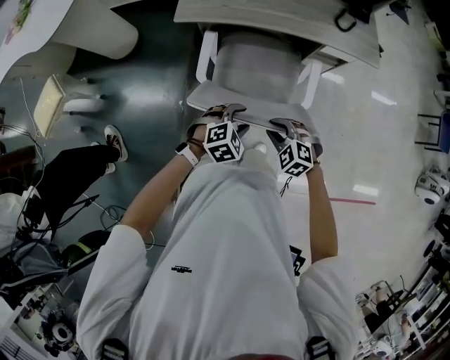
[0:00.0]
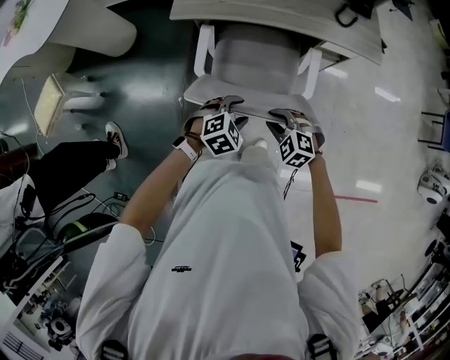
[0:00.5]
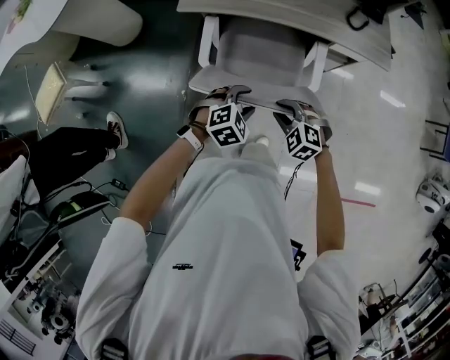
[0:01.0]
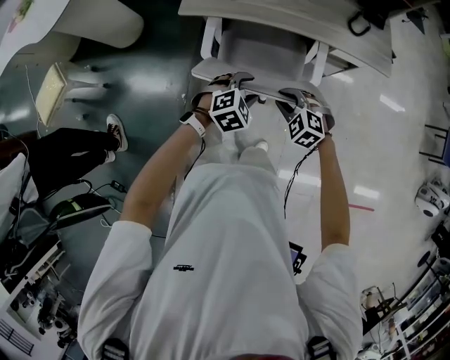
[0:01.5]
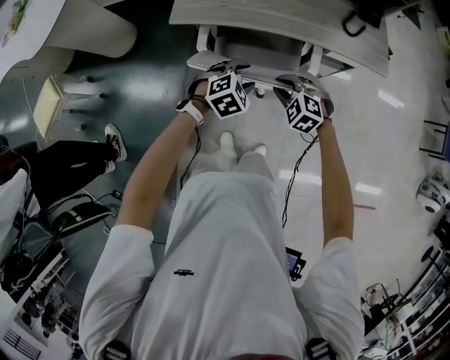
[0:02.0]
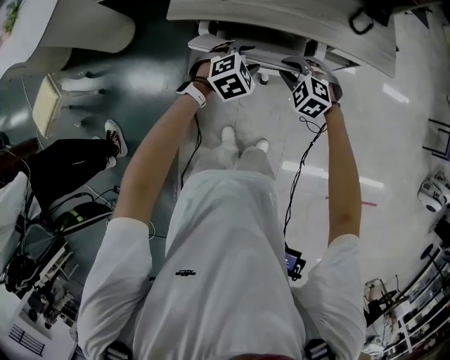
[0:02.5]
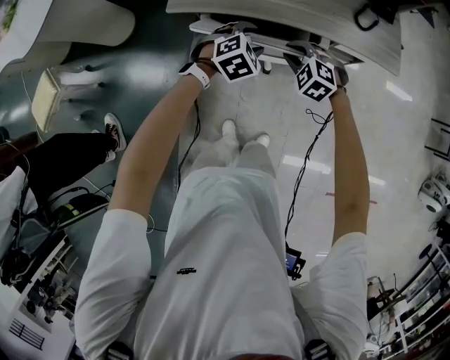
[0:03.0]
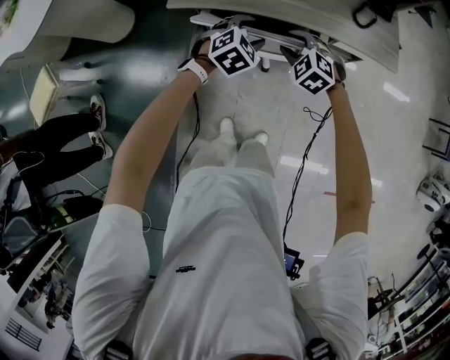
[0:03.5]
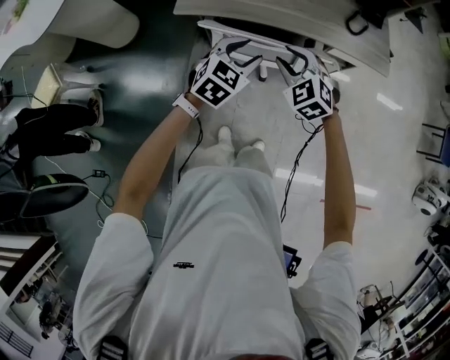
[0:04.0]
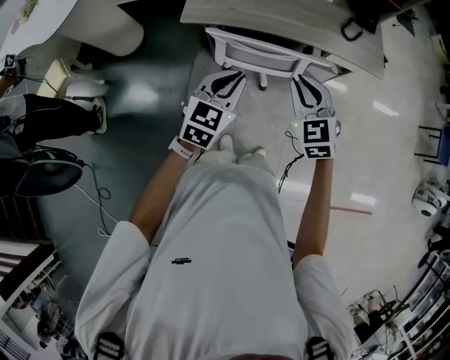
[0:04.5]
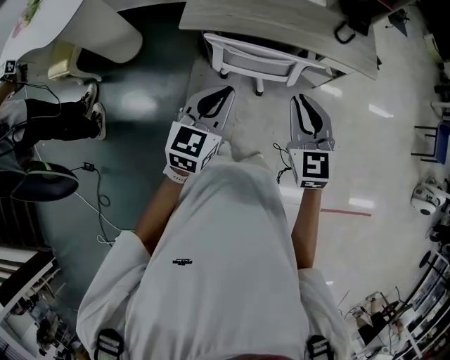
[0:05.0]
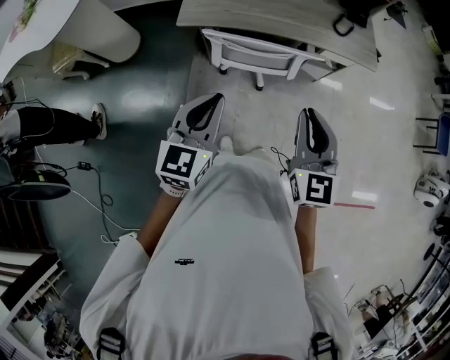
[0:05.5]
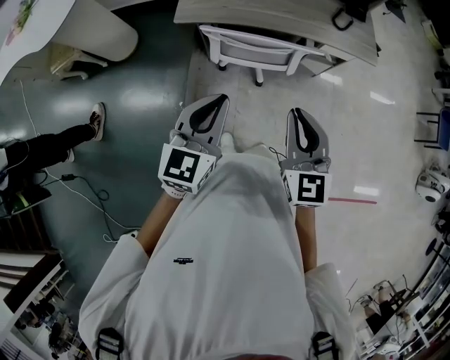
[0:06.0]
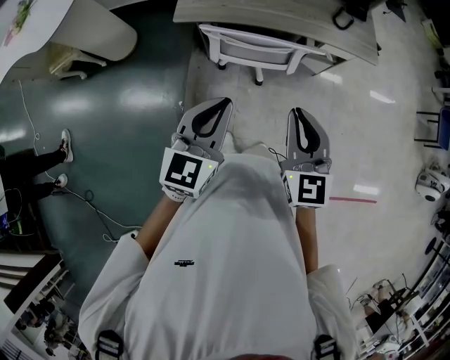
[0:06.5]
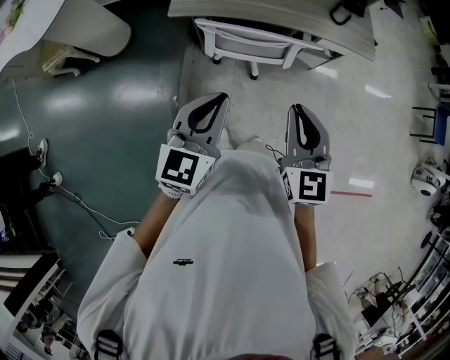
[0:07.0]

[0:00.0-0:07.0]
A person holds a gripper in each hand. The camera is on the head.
0:00.0 to 0:02.0: The two grippers go about 20 cm forward.
0:02.0 to 0:03.5: Both grippers travel together forward, some 10 cm.
0:03.5 to 0:05.0: The left gripper travels backward and upward by some 25 cm, swivels approximately 40 degrees, and closes its fingers. Meanwhile the right gripper moves upward and backward, about 30 cm, angles its fingers upward, by roughly 30 degrees, and closes.
0:05.0 to 0:07.0: The left gripper moves roughly 5 cm. The right gripper moves backward, approximately 5 cm.

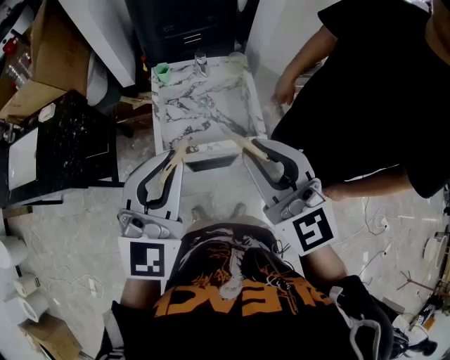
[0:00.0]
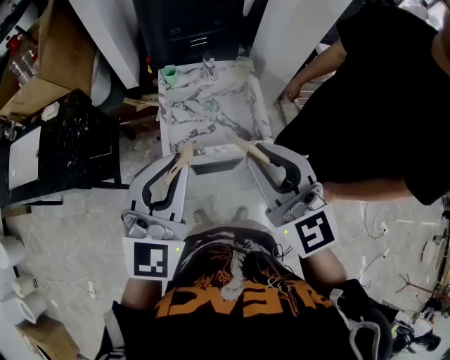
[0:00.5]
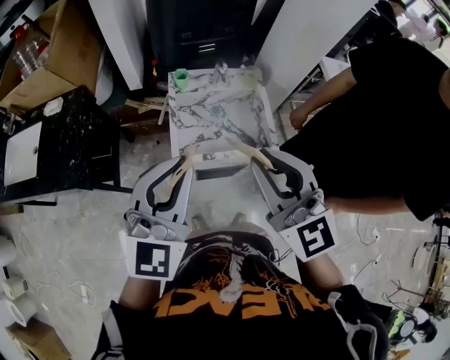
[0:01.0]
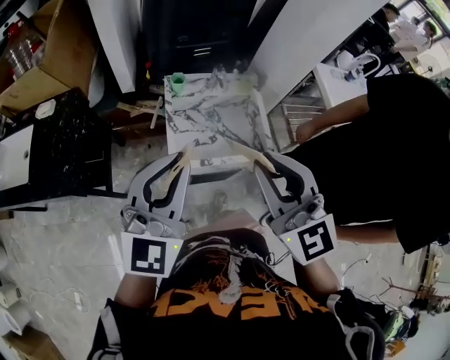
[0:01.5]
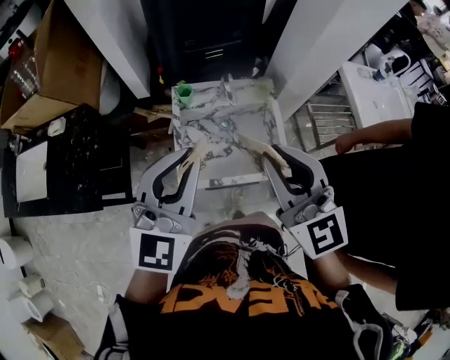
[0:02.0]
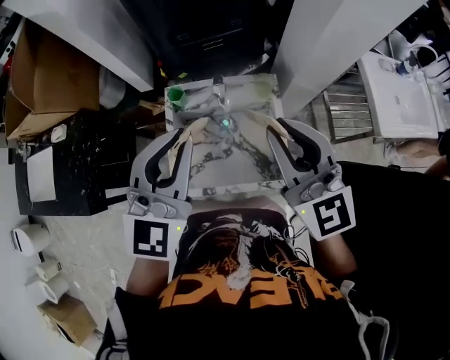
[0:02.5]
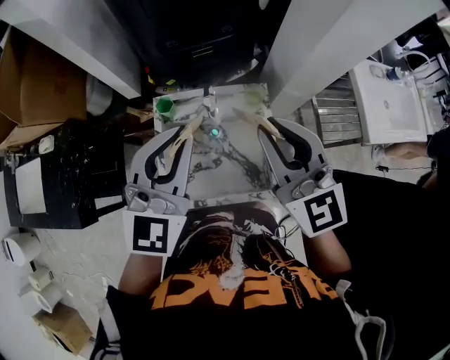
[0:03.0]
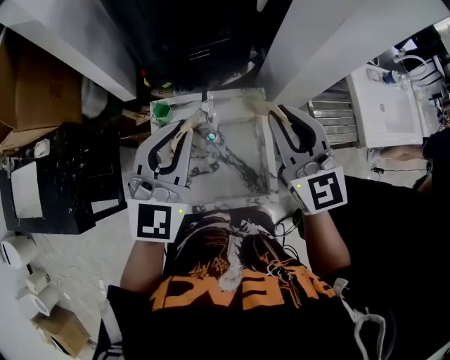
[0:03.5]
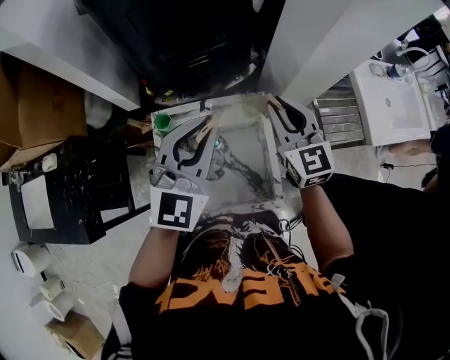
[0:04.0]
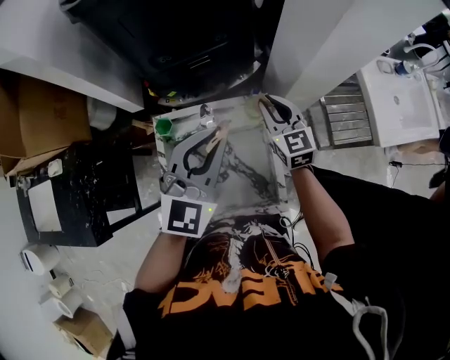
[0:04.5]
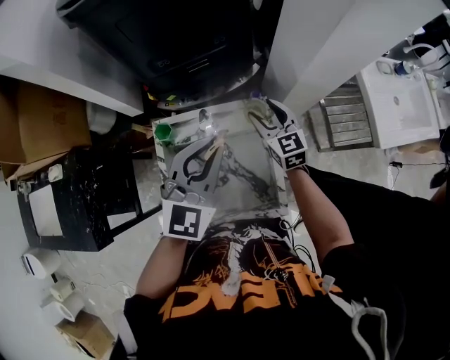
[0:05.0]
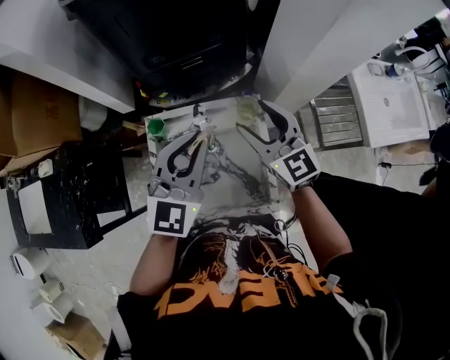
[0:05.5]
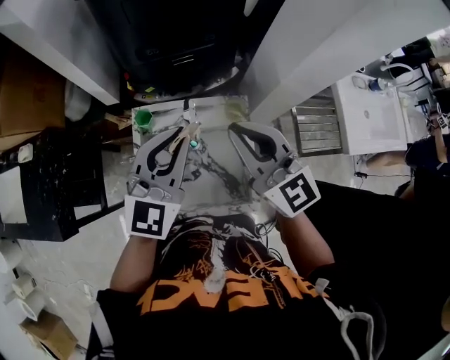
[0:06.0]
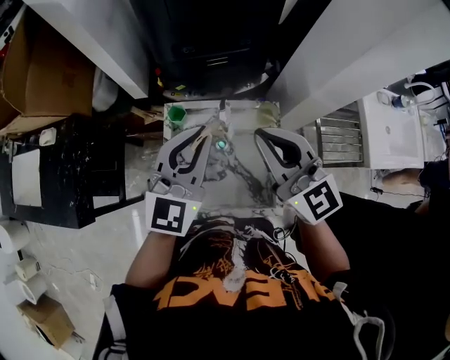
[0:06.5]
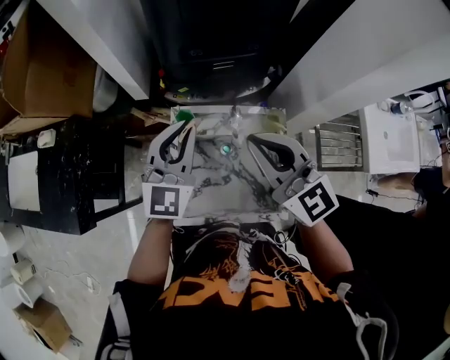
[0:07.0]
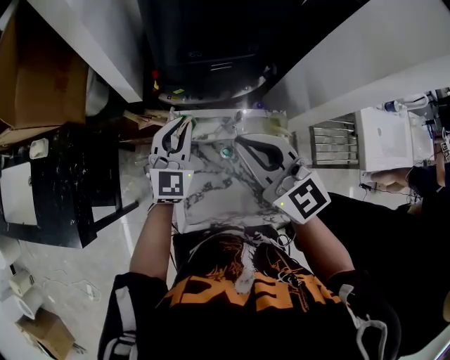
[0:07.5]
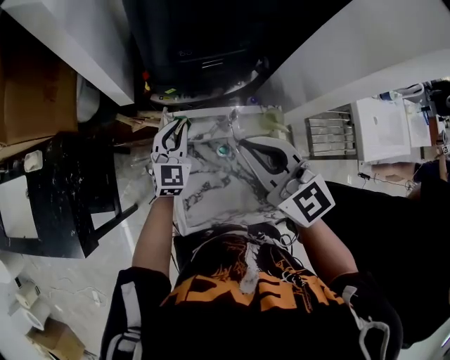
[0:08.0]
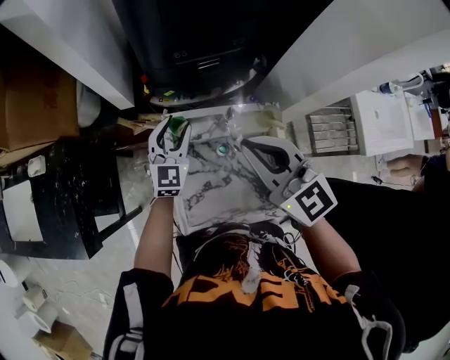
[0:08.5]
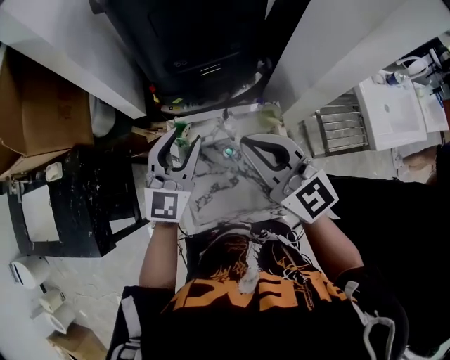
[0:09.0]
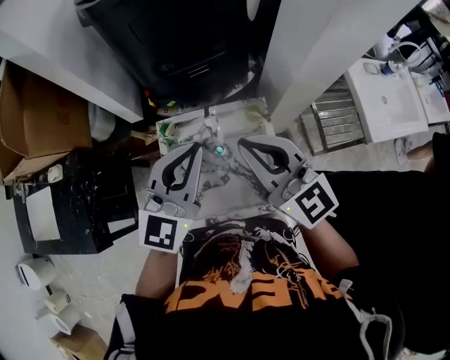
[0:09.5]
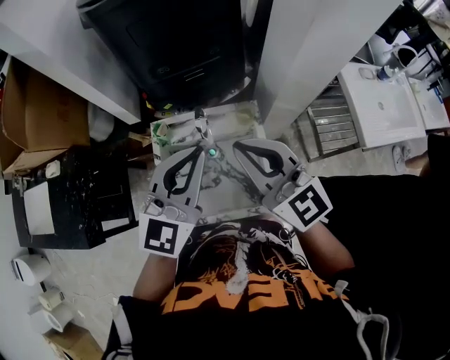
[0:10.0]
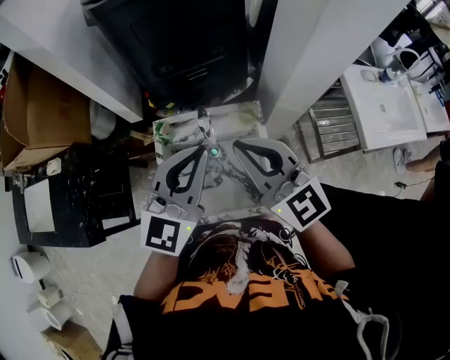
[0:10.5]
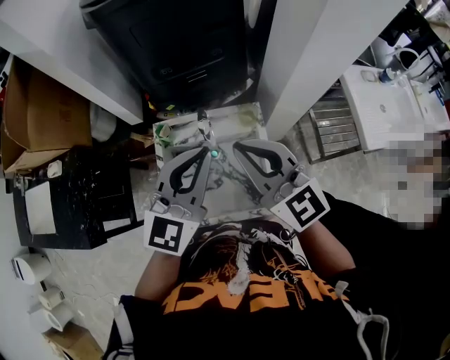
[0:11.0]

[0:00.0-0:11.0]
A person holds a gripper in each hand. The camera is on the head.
0:00.0 to 0:02.0: The grippers both shift forward by roughly 15 cm.
0:02.0 to 0:03.5: The grippers both shift forward and to the right by some 25 cm.
0:03.5 to 0:05.5: The left gripper travels to the right and downward by about 10 cm, while the right gripper goes roughly 15 cm downward and forward, and opens up.
0:05.5 to 0:07.5: The left gripper shifts roughly 20 cm to the left, forward and downward; the right gripper goes about 20 cm to the left and upward, and closes.
0:07.5 to 0:09.0: The right gripper goes approximately 5 cm to the right. The left gripper moves upward and backward, about 10 cm, and opens its fingers.
0:09.0 to 0:11.0: The left gripper travels to the right, backward and upward by roughly 20 cm, and closes up; the right gripper travels to the right and backward by approximately 10 cm.

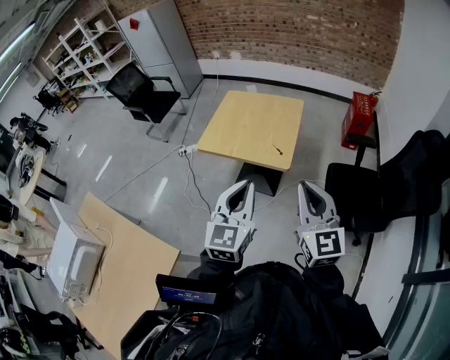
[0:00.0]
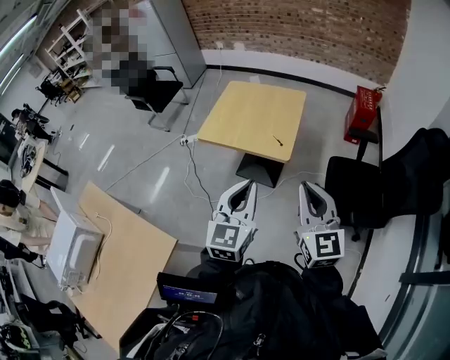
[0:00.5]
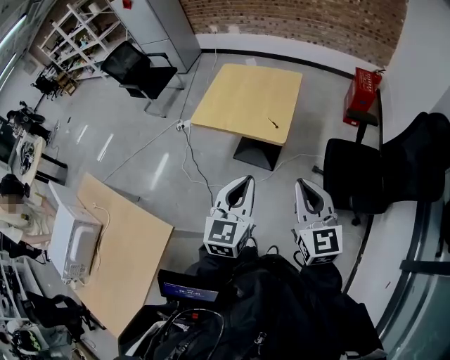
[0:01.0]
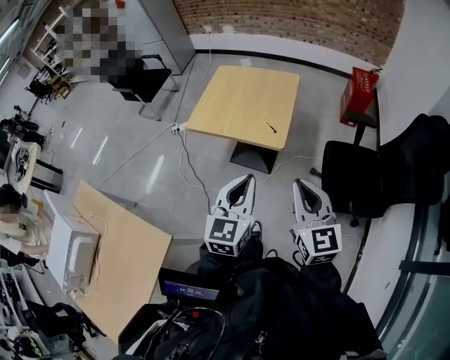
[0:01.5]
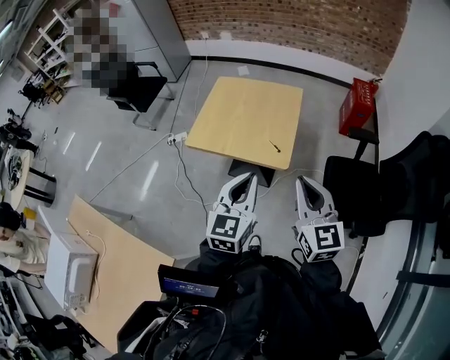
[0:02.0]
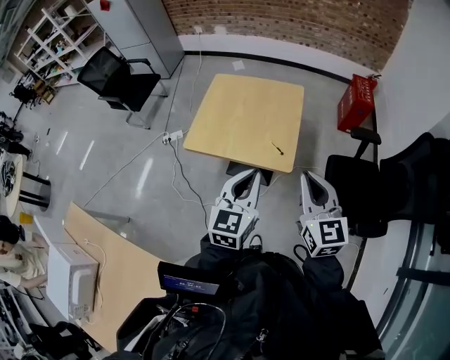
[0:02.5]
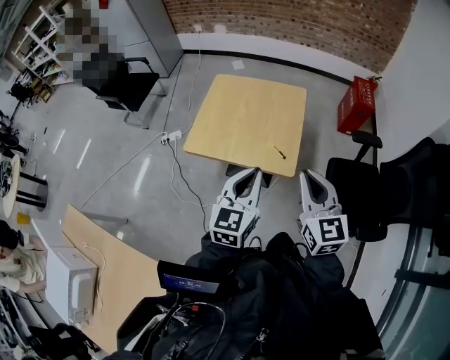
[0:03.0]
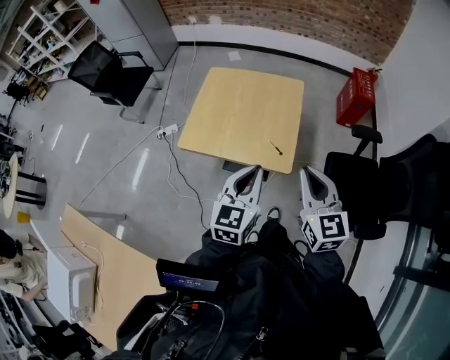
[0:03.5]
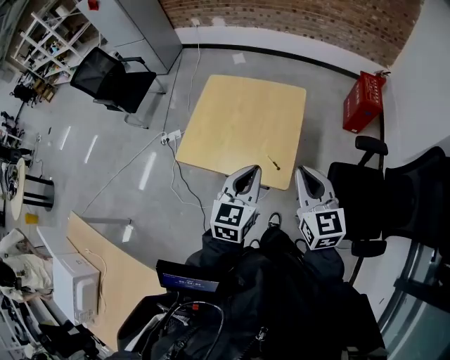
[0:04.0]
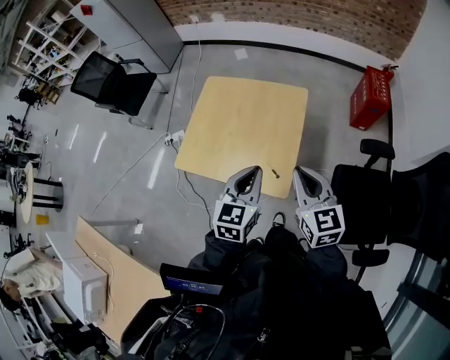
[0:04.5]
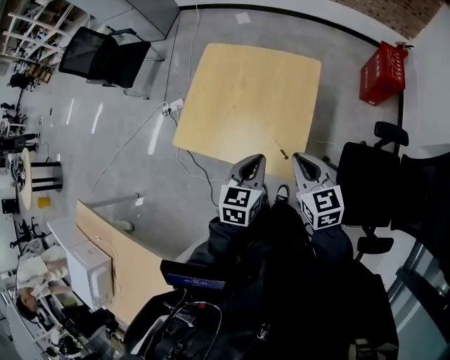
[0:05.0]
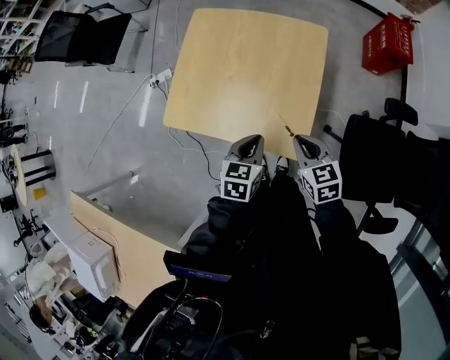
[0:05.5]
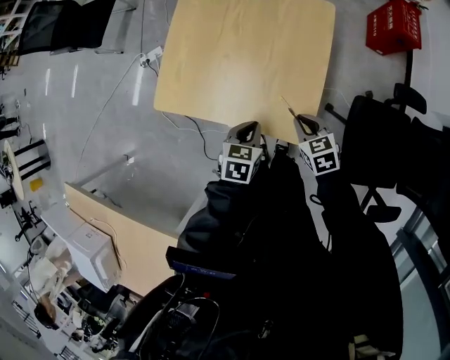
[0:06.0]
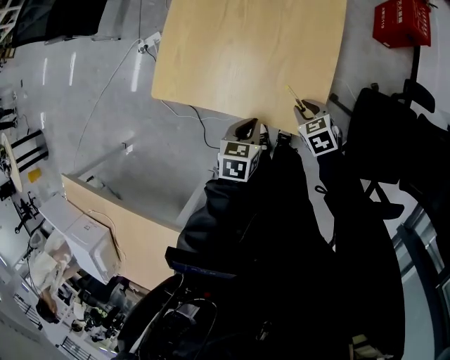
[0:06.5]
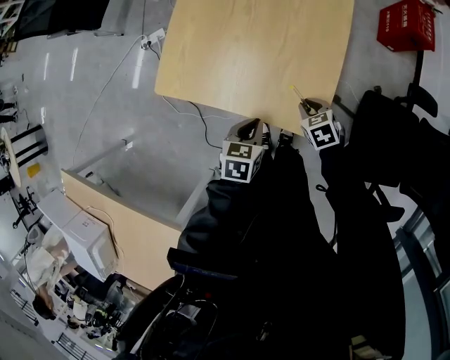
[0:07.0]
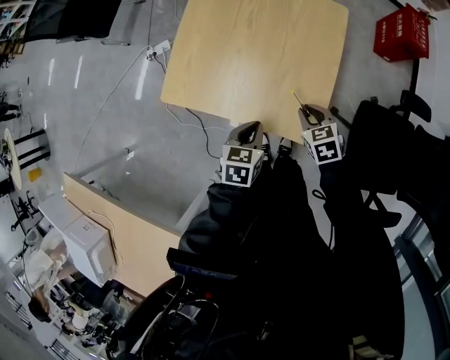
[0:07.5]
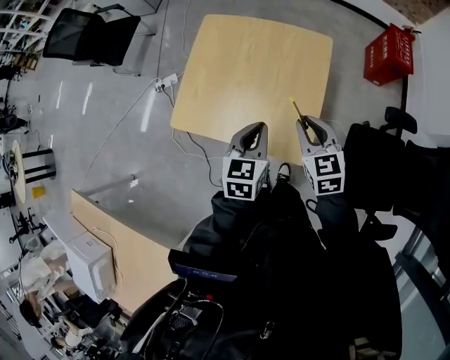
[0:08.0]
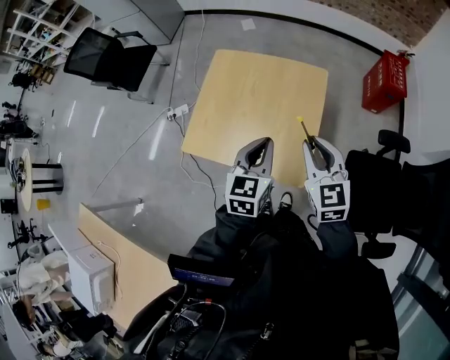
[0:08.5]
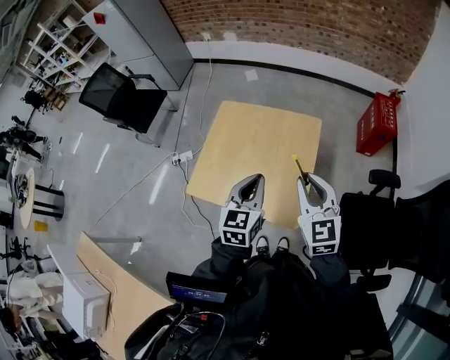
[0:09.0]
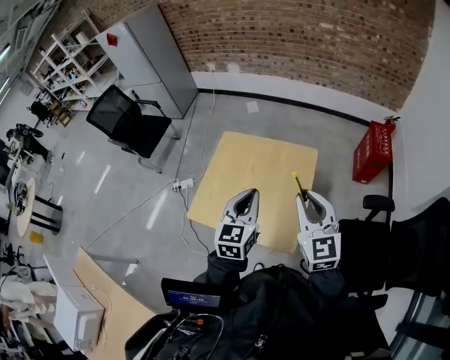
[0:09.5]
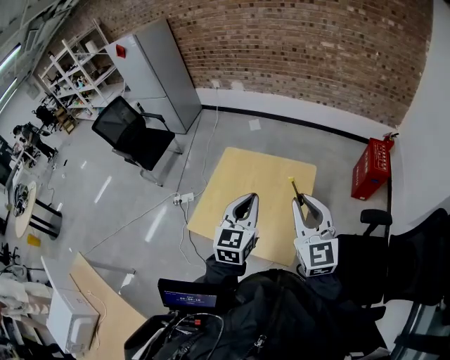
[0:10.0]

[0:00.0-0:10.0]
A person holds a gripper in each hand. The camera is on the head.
0:00.0 to 0:02.0: The right gripper heads forward, covering roughly 10 cm; the left gripper heads forward and downward, covering roughly 15 cm.
0:02.0 to 0:04.0: The two grippers go about 20 cm forward.
0:04.0 to 0:06.0: Both grippers travel together downward, roughly 30 cm. The right gripper points its fingers approximately 40 degrees further downward; the left gripper tips its fingers downward by roughly 40 degrees.
0:06.0 to 0:08.0: Both grippers move upward, roughly 15 cm. The right gripper turns by some 20 degrees, while the left gripper turns by some 20 degrees.
0:08.0 to 0:10.0: The two grippers go approximately 25 cm upward. The left gripper rotates about 20 degrees. Meanwhile the right gripper tips its fingers upward by approximately 30 degrees.
